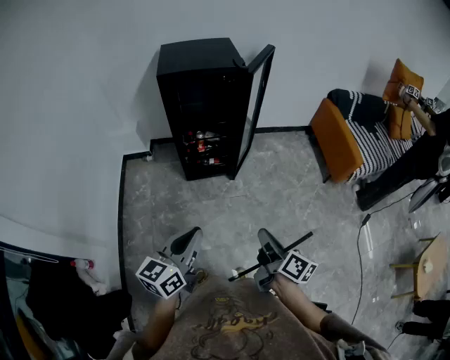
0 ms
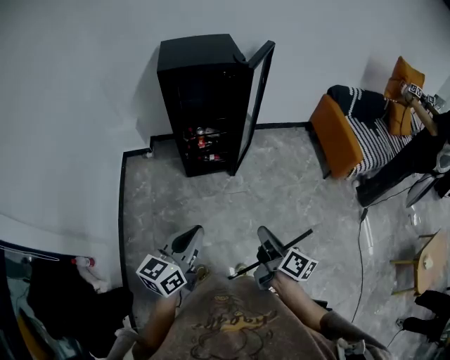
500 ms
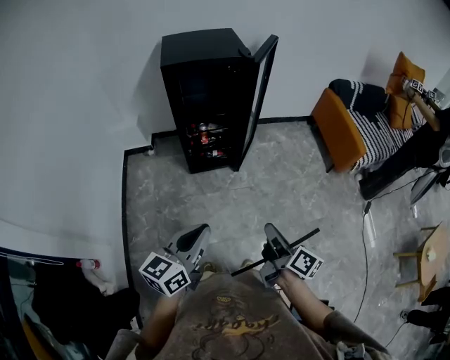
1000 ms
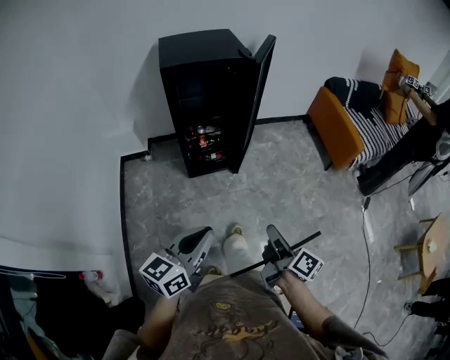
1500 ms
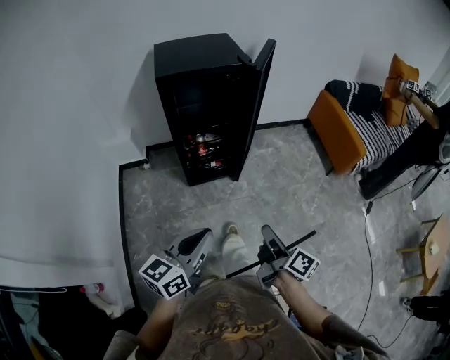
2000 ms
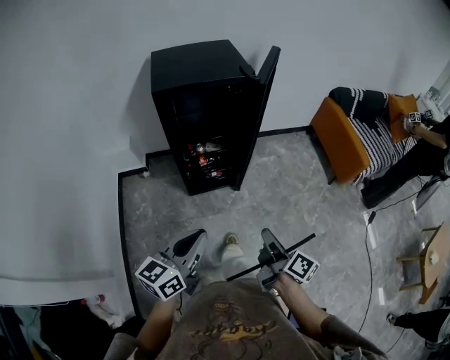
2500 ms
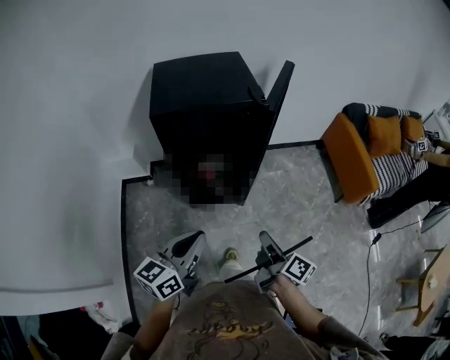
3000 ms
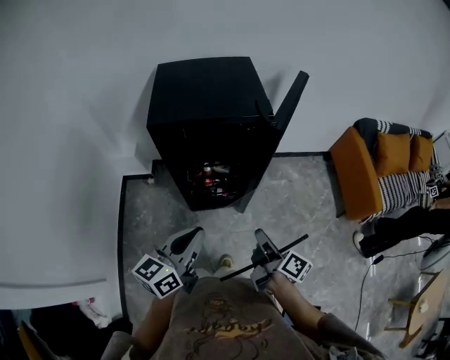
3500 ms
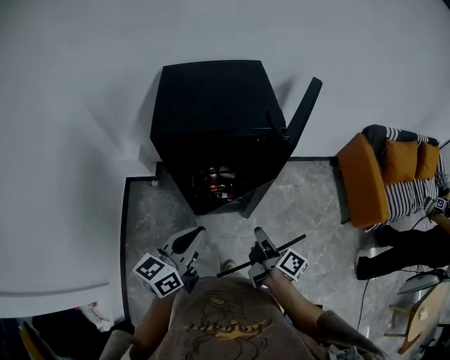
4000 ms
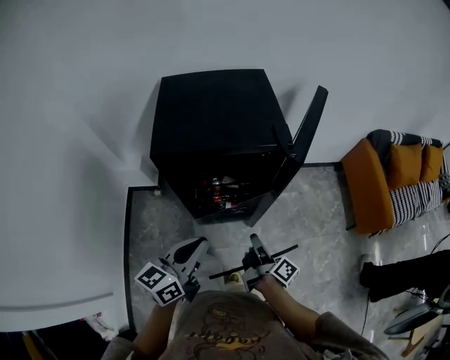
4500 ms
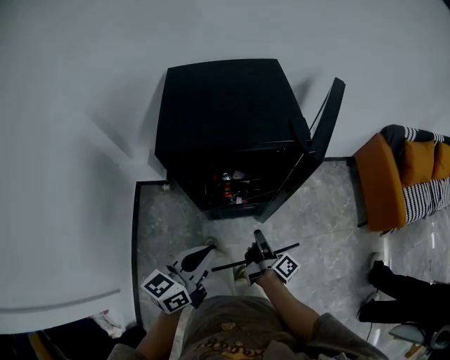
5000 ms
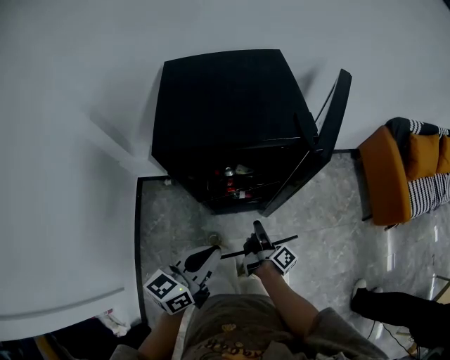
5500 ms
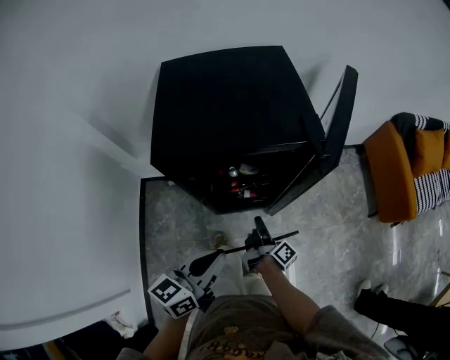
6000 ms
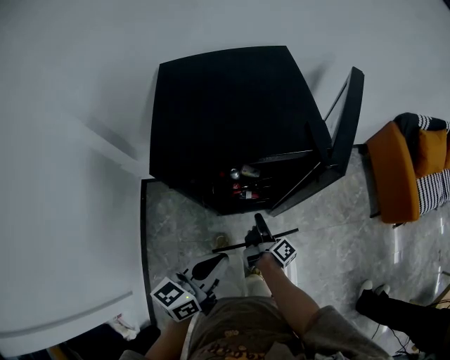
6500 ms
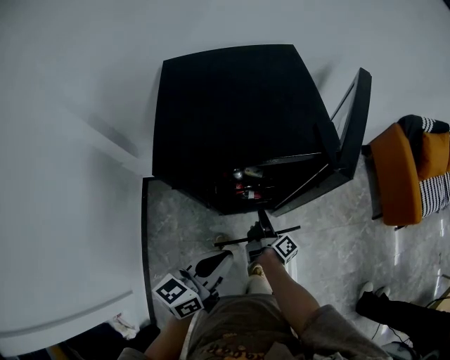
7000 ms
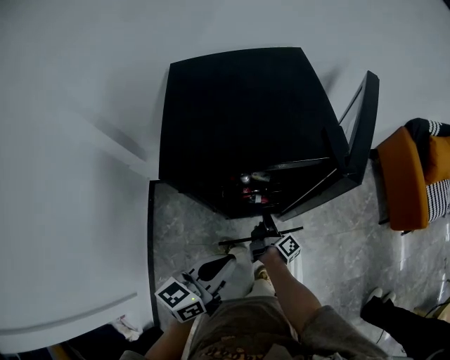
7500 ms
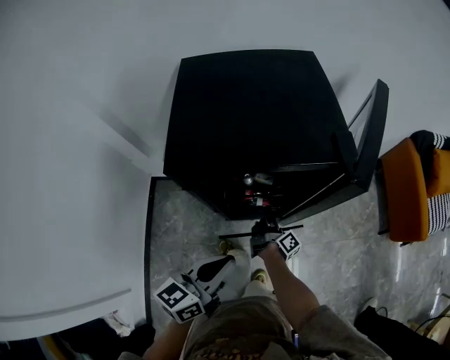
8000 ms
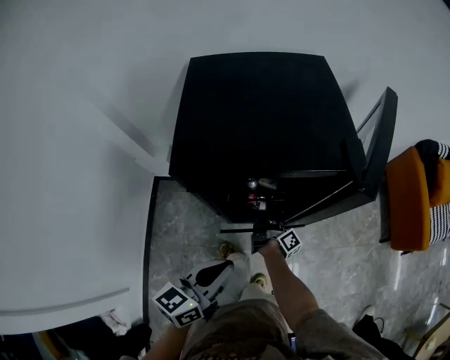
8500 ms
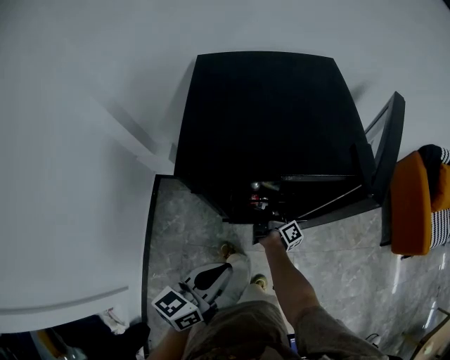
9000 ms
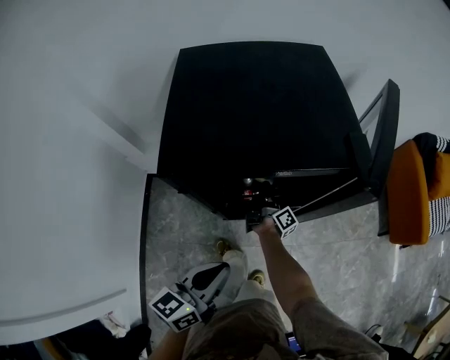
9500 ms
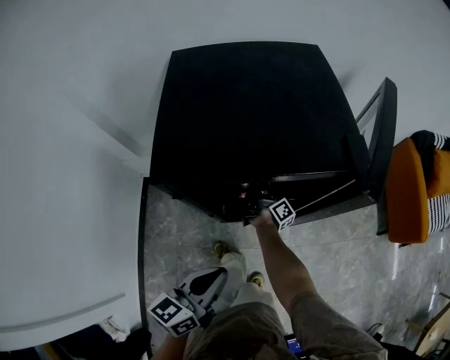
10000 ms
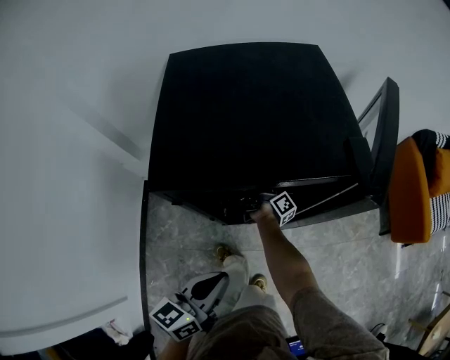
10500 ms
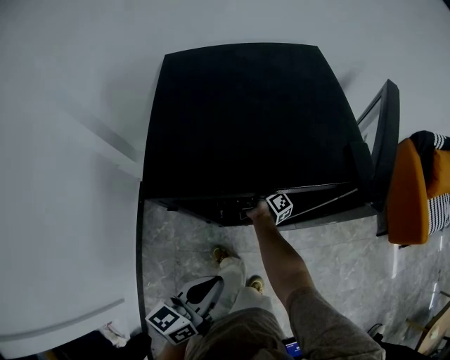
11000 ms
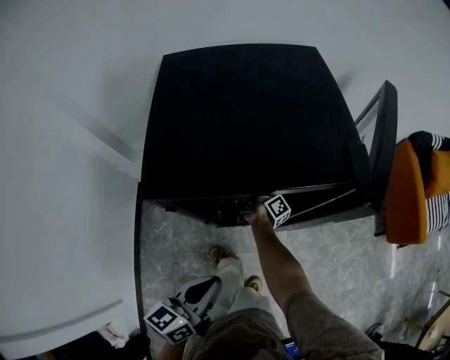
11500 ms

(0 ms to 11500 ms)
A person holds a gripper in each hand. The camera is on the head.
0 ms - 2000 ms: The left gripper shifts by roughly 10 cm.
2000 ms - 4000 ms: The left gripper ends up about 30 cm from where it was.
4000 ms - 6000 ms: The left gripper heads downward, covering roughly 5 cm.

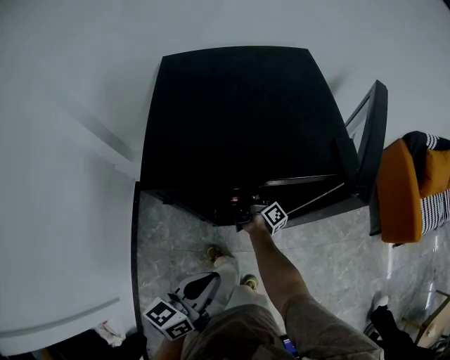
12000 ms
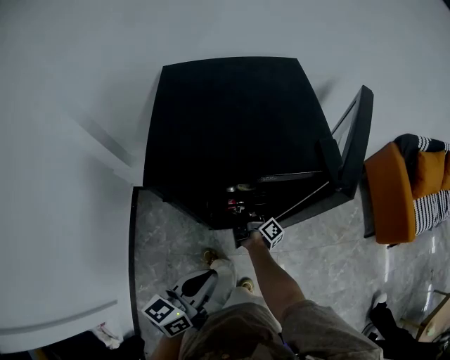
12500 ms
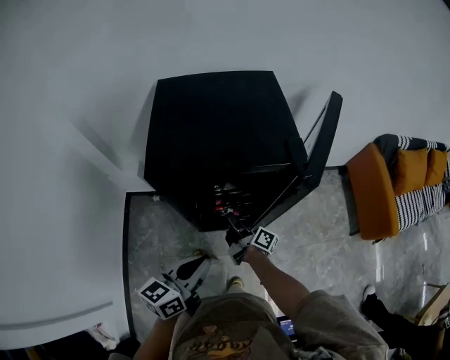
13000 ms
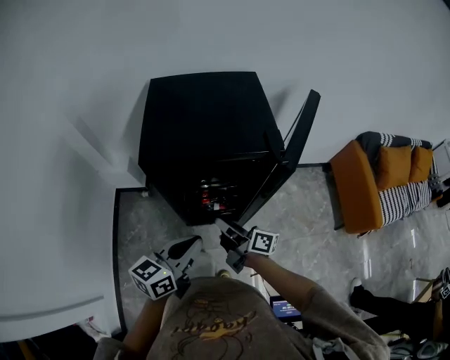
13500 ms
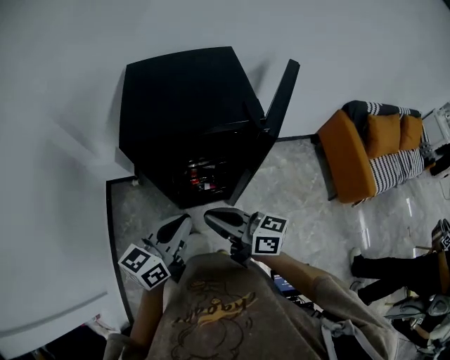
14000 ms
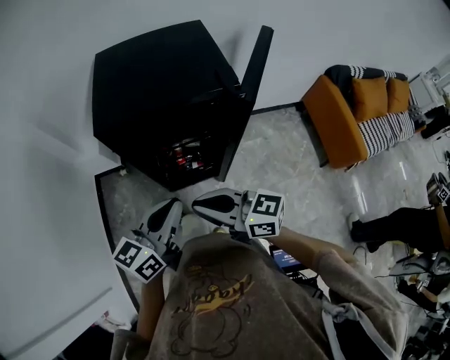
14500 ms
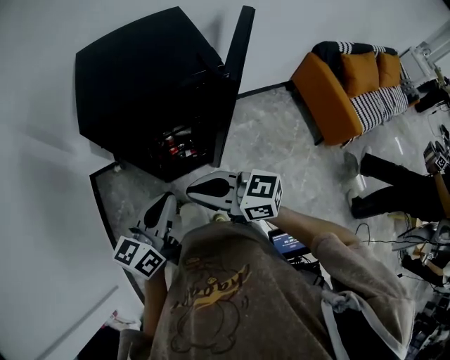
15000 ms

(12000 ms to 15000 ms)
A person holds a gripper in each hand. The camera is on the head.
12000 ms - 13500 ms: The left gripper shifts approximately 10 cm upward.

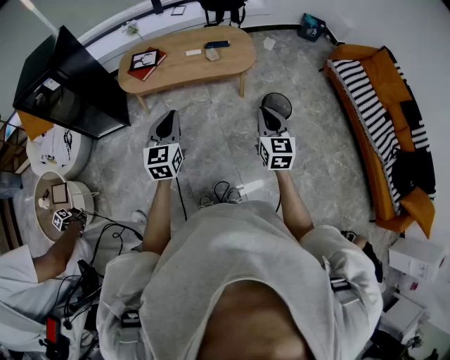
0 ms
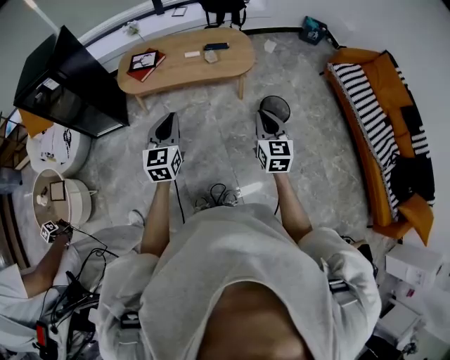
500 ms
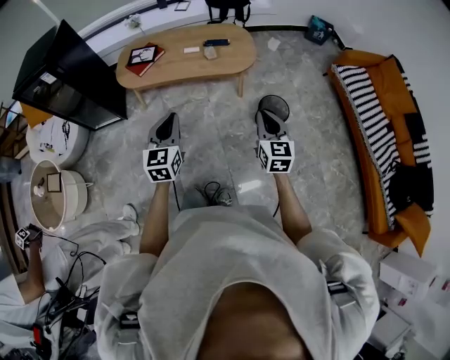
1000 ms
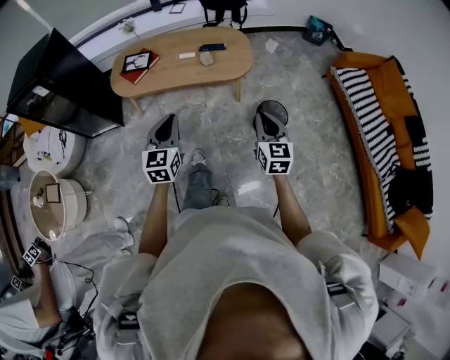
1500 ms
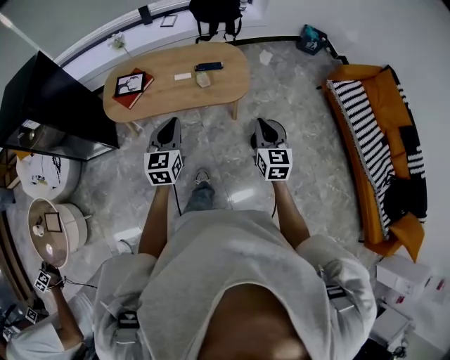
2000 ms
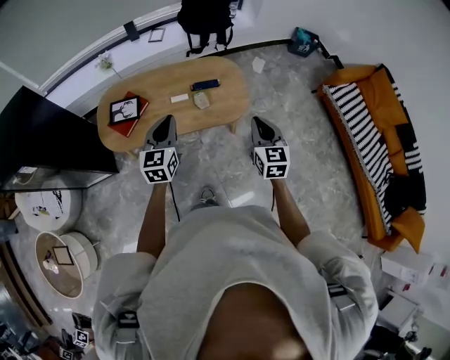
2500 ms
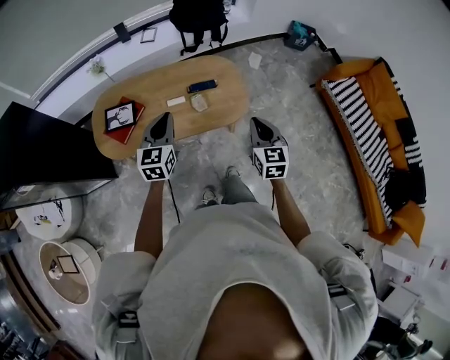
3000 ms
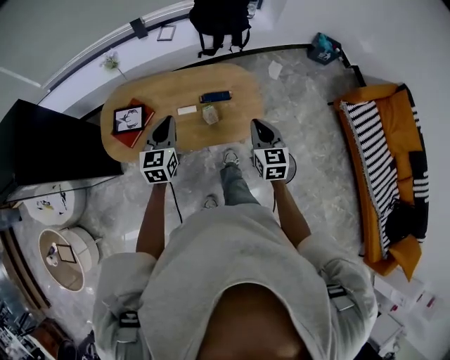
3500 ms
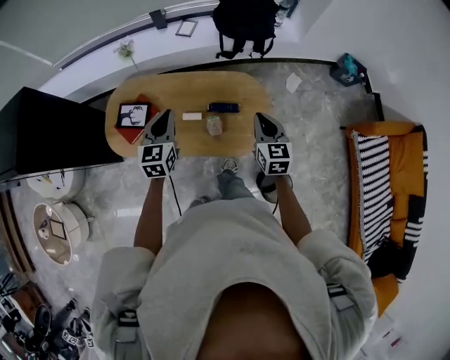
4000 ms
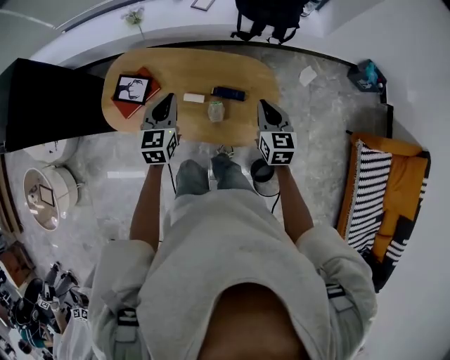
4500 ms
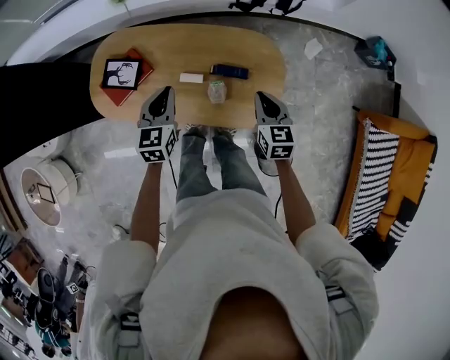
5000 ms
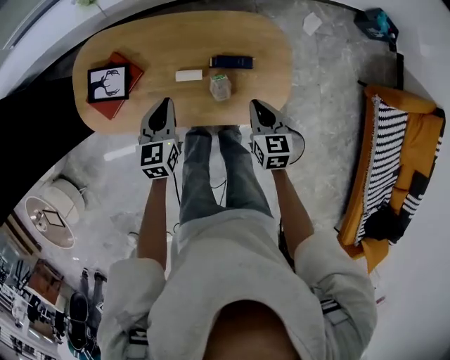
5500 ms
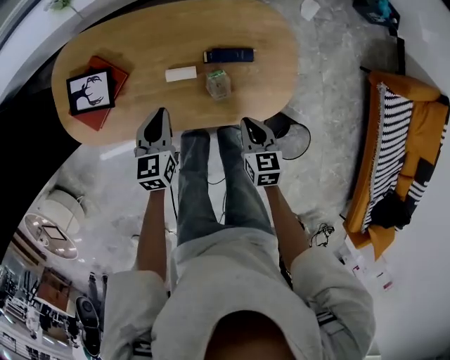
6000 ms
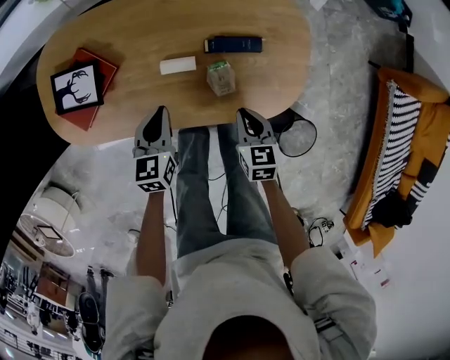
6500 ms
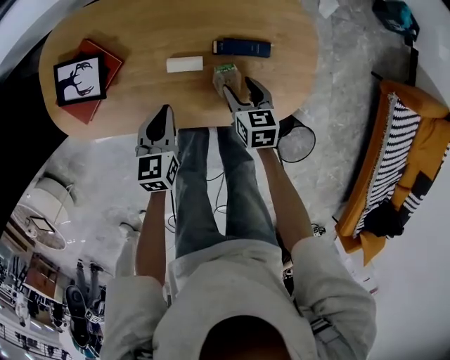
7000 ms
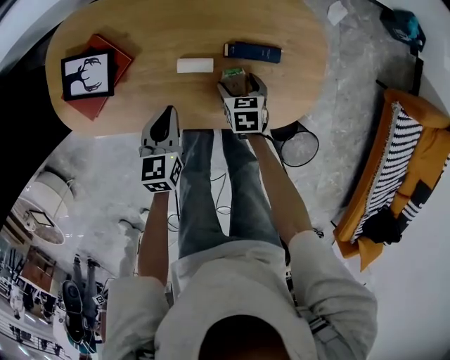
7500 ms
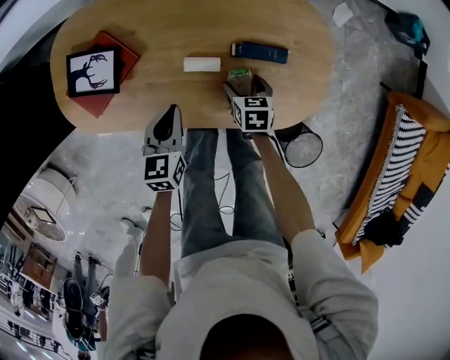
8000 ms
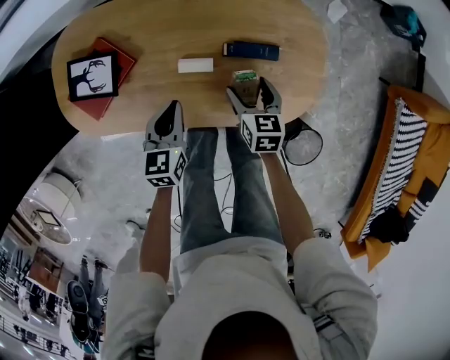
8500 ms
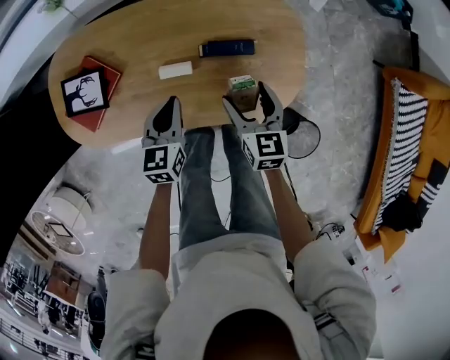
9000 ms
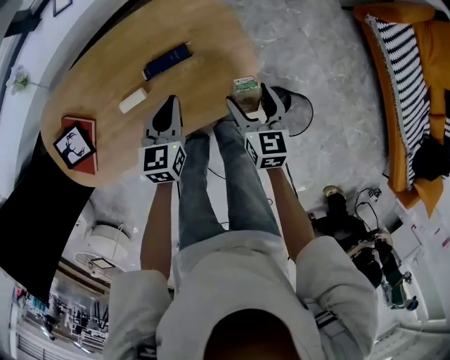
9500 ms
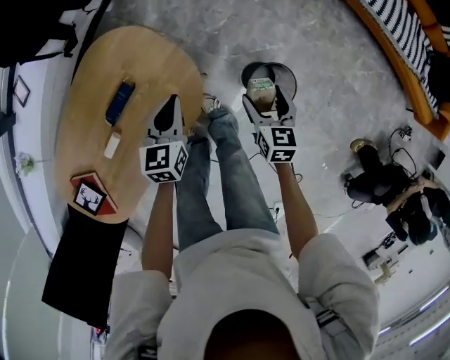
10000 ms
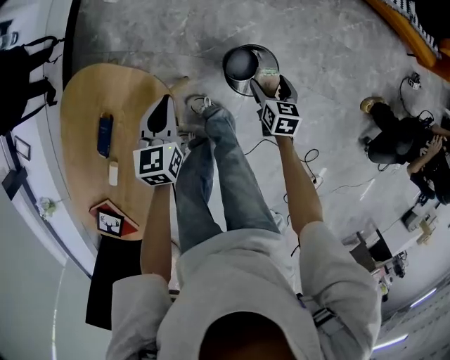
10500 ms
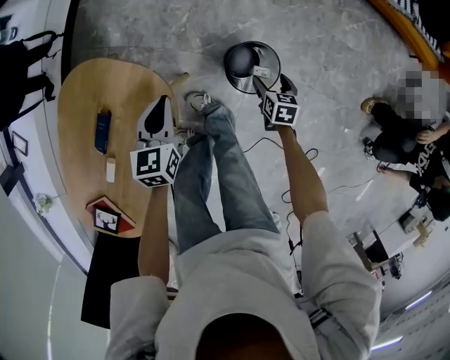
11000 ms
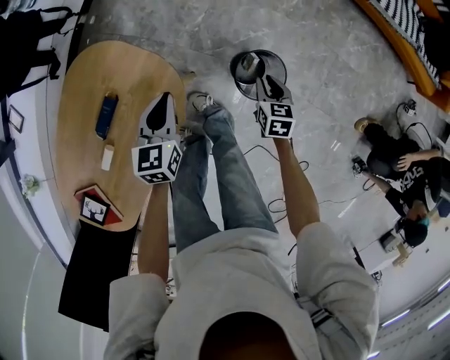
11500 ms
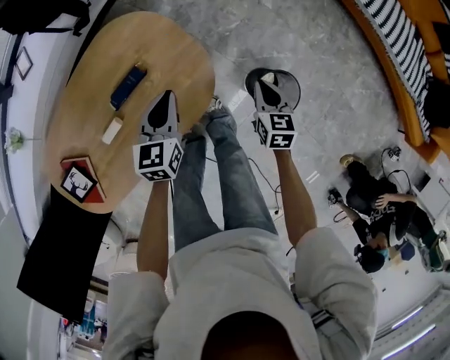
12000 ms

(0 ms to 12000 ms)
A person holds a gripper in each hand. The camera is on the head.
0 ms - 2000 ms: Both grippers move forward, roughly 20 cm.
2000 ms - 4000 ms: Both grippers move forward, roughly 35 cm.
4000 ms - 6000 ms: The grippers both shift downward by about 25 cm. The right gripper rotates approximately 30 degrees. The left gripper swivels about 20 degrees.
6000 ms - 8000 ms: The left gripper is displaced downward by roughly 5 cm, while the right gripper moves downward and forward, about 20 cm, and opens up.
8000 ms - 10000 ms: The right gripper shifts by some 40 cm, and rotates some 60 degrees; the left gripper changes place by approximately 40 cm, and turns by approximately 50 degrees.
10000 ms - 12000 ms: The right gripper goes downward and returns, about 15 cm each way, and closes.
